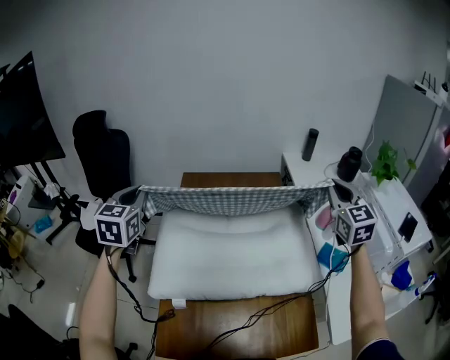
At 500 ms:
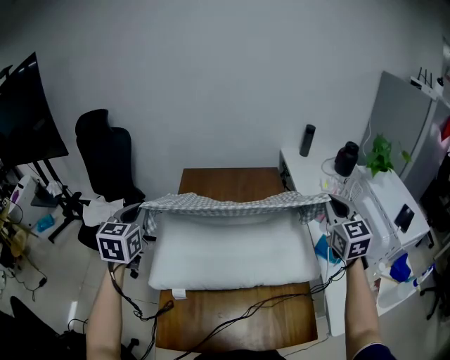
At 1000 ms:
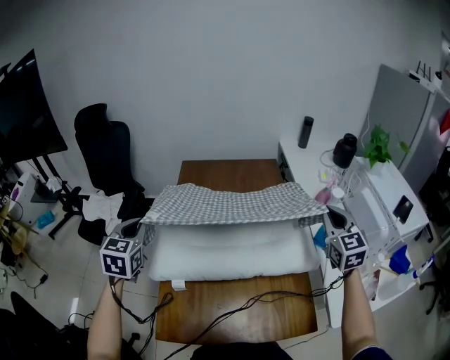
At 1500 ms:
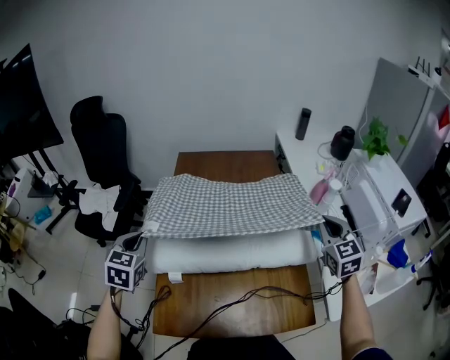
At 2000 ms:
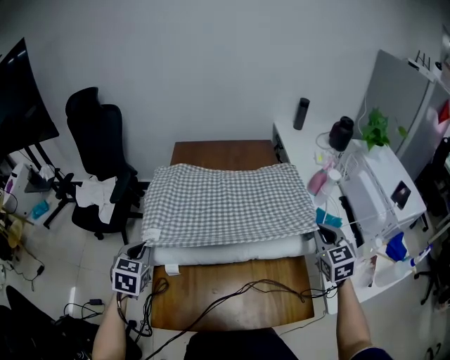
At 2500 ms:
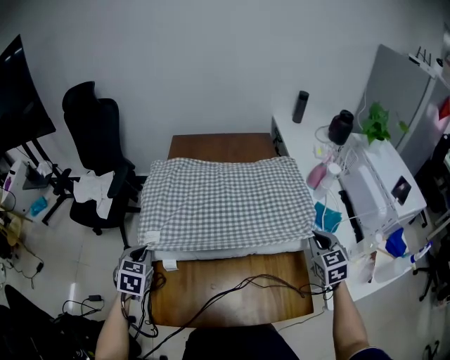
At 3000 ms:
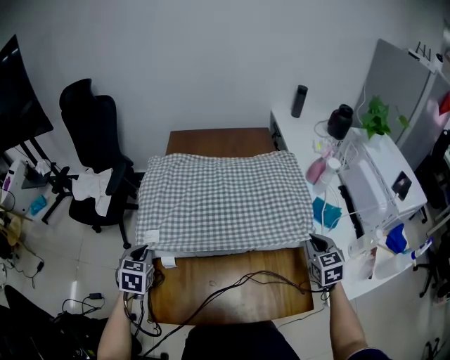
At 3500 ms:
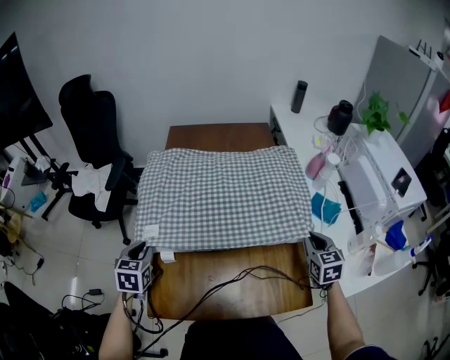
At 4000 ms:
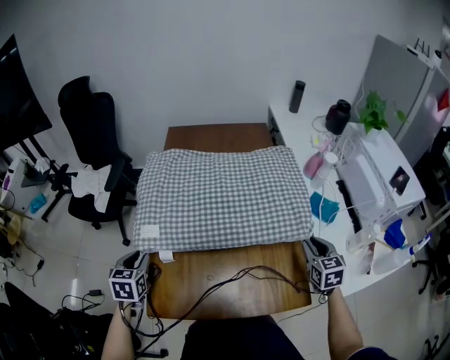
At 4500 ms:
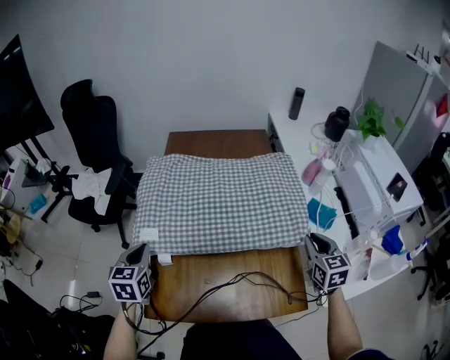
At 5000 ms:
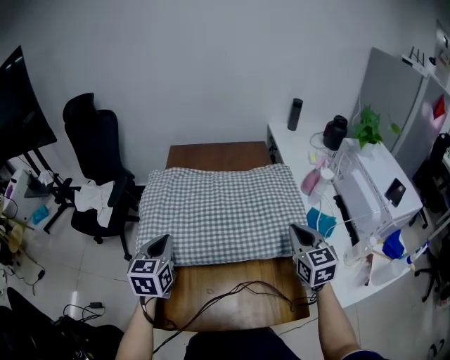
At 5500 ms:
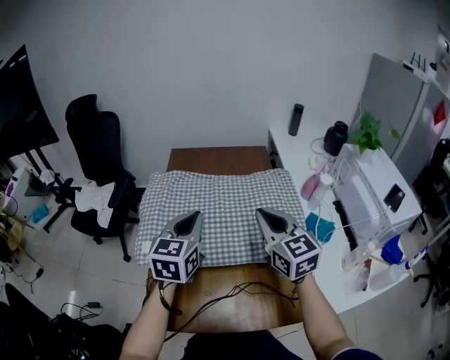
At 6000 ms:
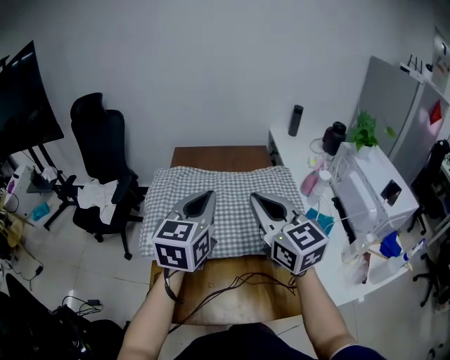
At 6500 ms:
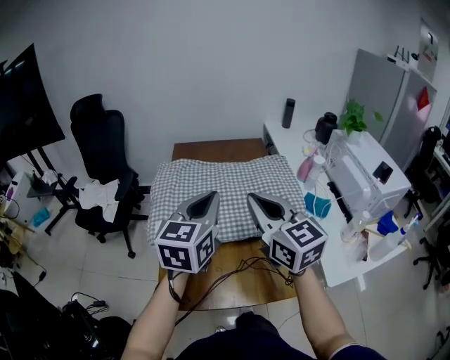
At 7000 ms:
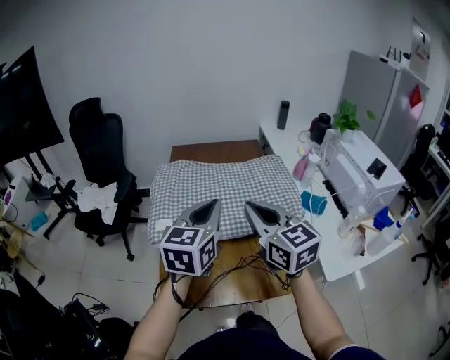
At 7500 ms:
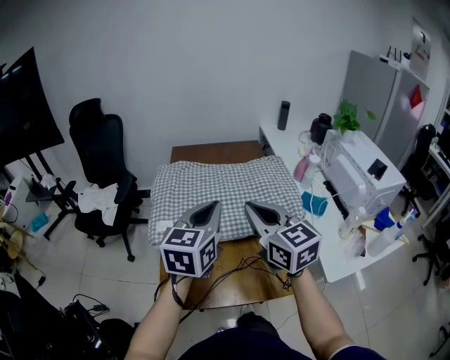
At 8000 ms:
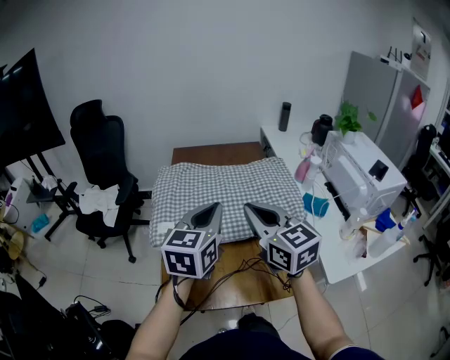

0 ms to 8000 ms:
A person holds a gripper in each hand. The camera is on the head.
0 ms to 2000 ms: The grippers both shift downward and backward by about 30 cm. The left gripper turns by roughly 20 degrees.
2000 ms to 4000 ms: The two grippers go some 10 cm downward and backward. The right gripper opens up, while the left gripper opens up.
4000 ms to 6000 ms: The left gripper is displaced upward and to the right by about 35 cm, points its fingers roughly 30 degrees further upward, and closes, while the right gripper travels upward and to the left by roughly 35 cm, tilts its fingers some 30 degrees upward, and closes.
6000 ms to 8000 ms: Both grippers move backward, roughly 10 cm.

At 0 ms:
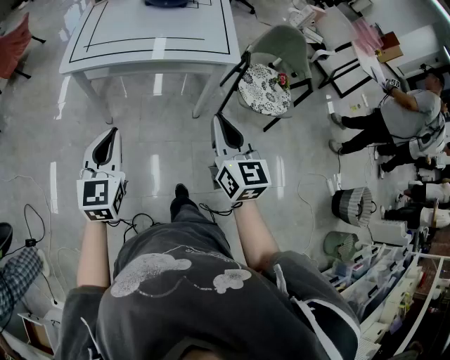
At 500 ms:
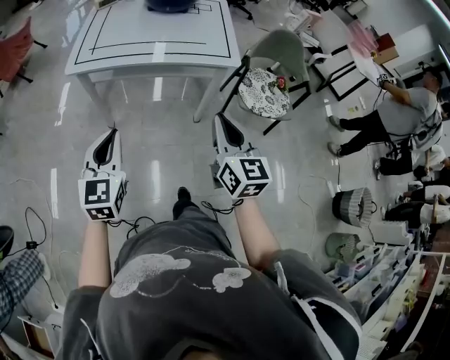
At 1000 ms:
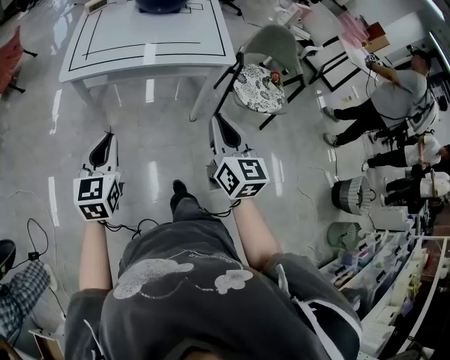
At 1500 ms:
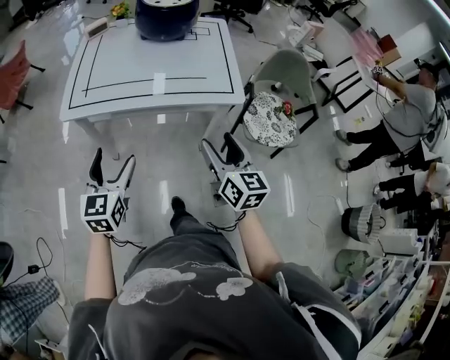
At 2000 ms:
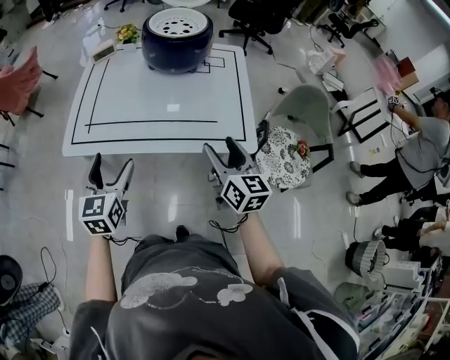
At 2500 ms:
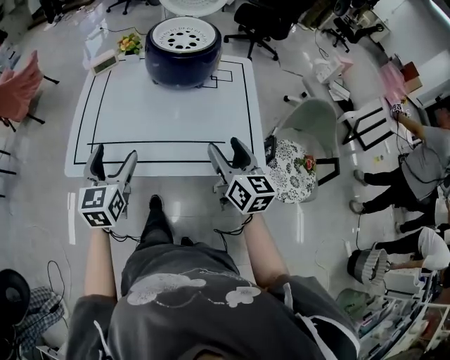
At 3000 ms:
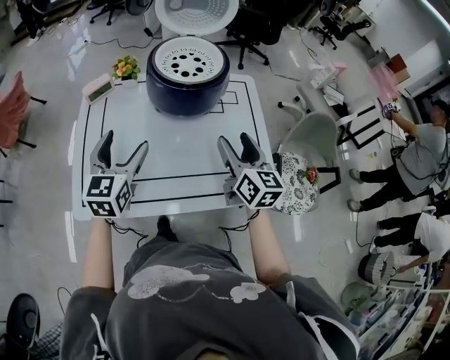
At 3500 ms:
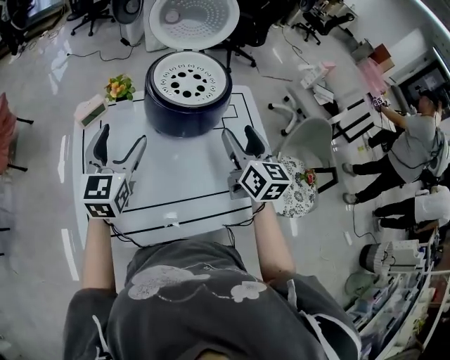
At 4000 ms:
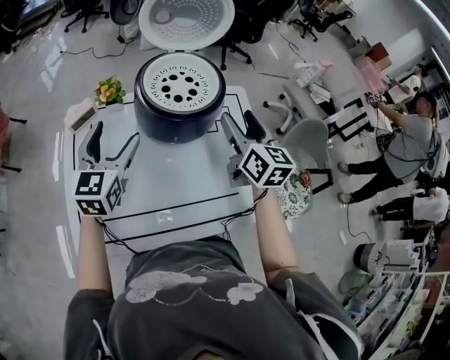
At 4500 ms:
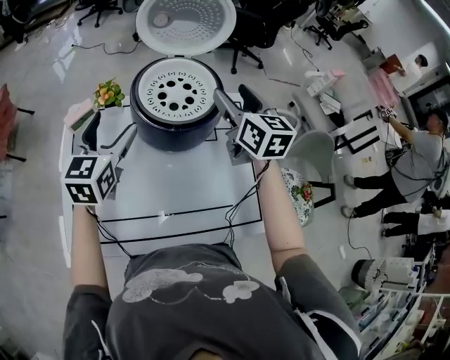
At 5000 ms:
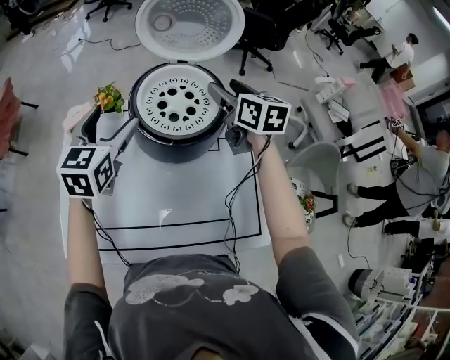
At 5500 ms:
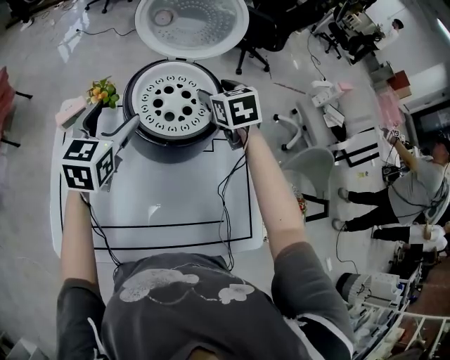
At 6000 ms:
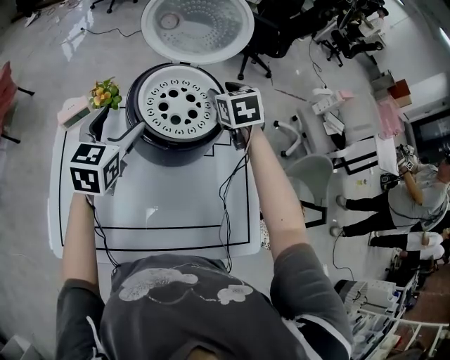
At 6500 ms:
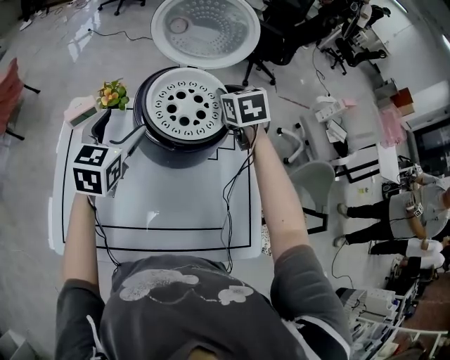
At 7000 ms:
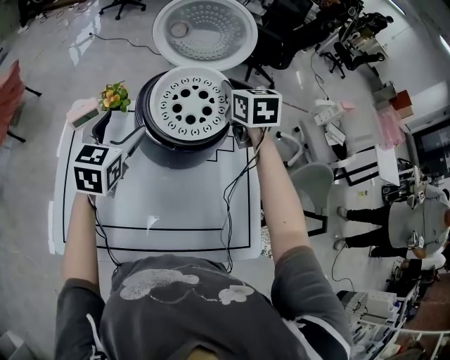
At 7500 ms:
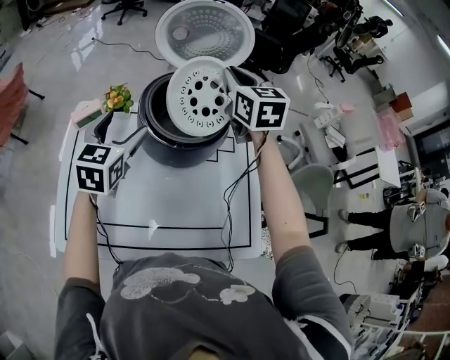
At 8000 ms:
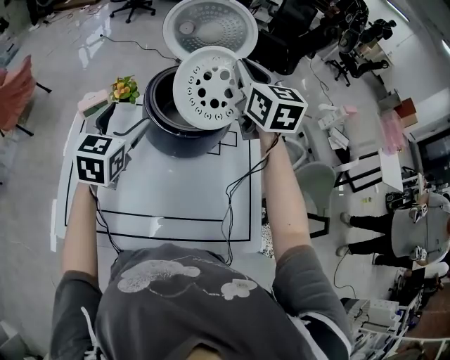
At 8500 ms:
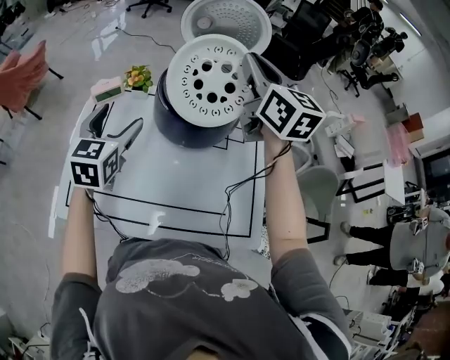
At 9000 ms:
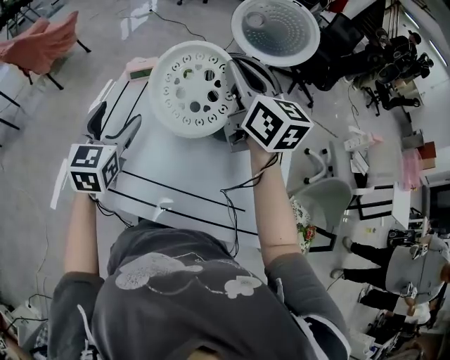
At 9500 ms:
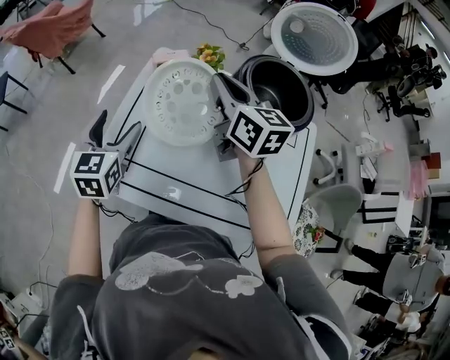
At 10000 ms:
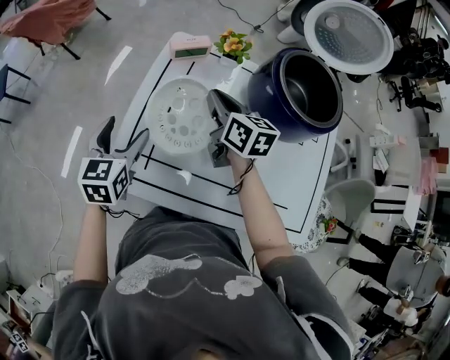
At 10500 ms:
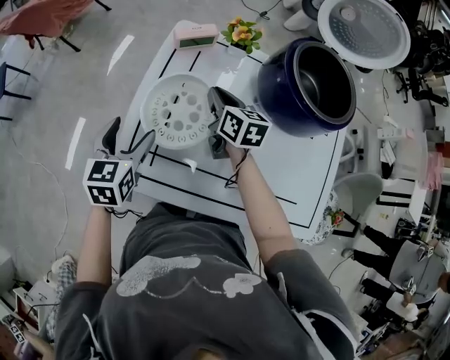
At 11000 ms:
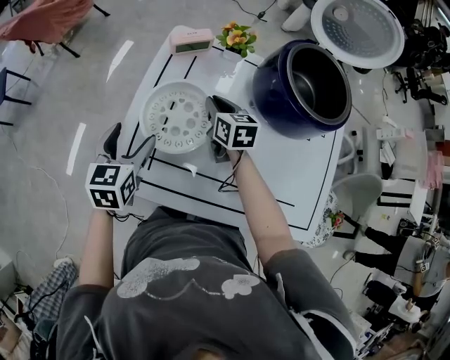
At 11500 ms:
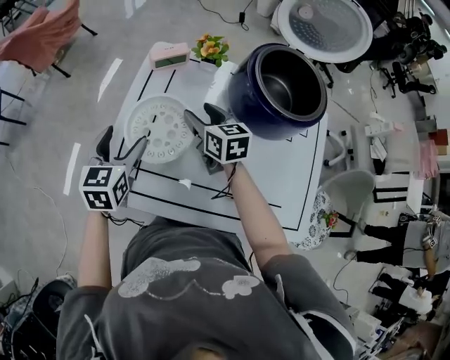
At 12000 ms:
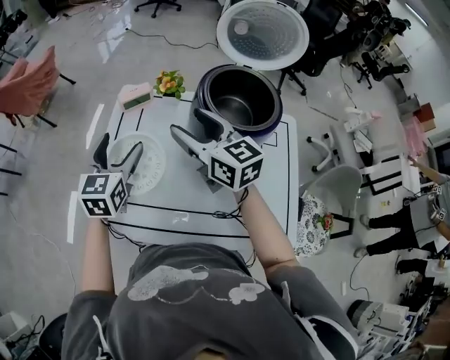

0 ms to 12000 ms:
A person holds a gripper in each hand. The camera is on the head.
0 ms to 2000 ms: Both grippers move forward, roughly 30 cm. The right gripper opens, while the left gripper opens up.
2000 ms to 4000 ms: Both grippers travel together forward, roughly 35 cm.
4000 ms to 6000 ms: The left gripper shifts approximately 10 cm forward, while the right gripper heads forward, covering approximately 20 cm, and points its fingers about 30 degrees further downward.
6000 ms to 8000 ms: The right gripper shifts approximately 20 cm upward, tilts its fingers approximately 30 degrees upward, and closes up. The left gripper is displaced backward by about 5 cm.
8000 ms to 10000 ms: The grippers both shift to the left and downward by some 35 cm. The left gripper changes its angle by approximately 20 degrees; the right gripper changes its angle by approximately 40 degrees.
10000 ms to 12000 ms: The left gripper moves to the right and upward, roughly 15 cm; the right gripper heads upward, to the right and backward, covering roughly 15 cm, turns by roughly 20 degrees, and opens.

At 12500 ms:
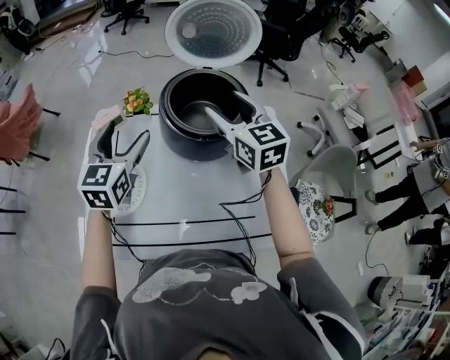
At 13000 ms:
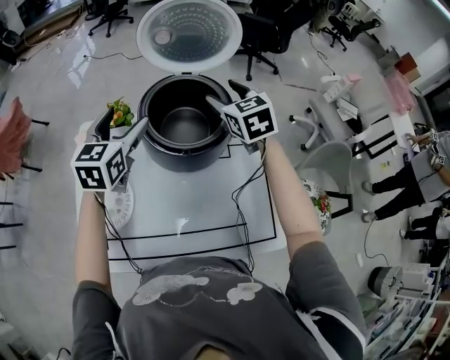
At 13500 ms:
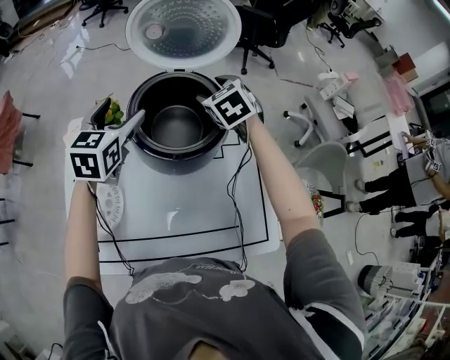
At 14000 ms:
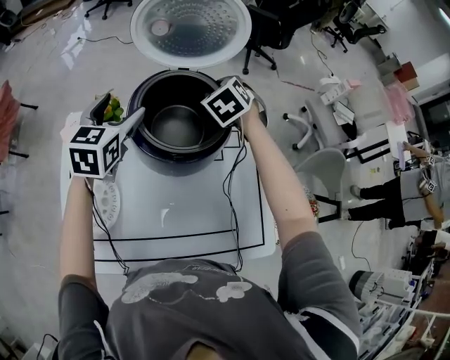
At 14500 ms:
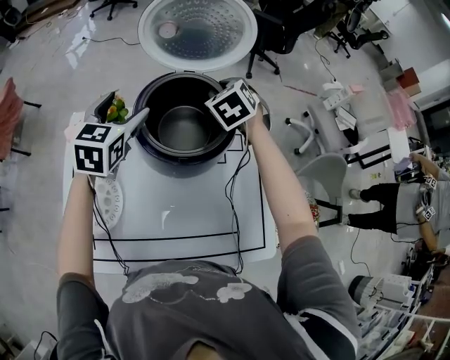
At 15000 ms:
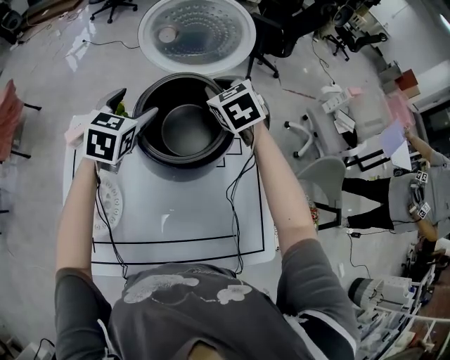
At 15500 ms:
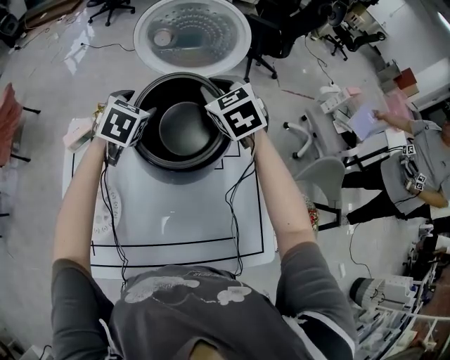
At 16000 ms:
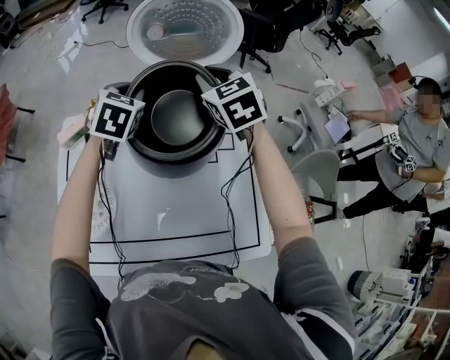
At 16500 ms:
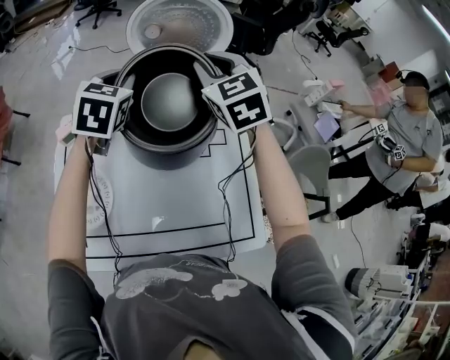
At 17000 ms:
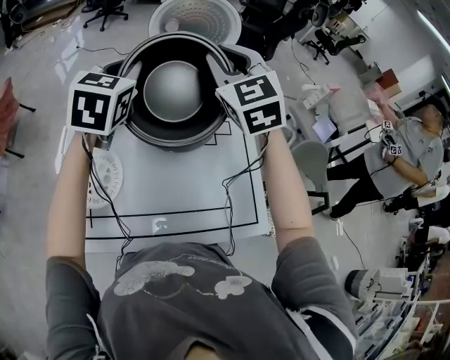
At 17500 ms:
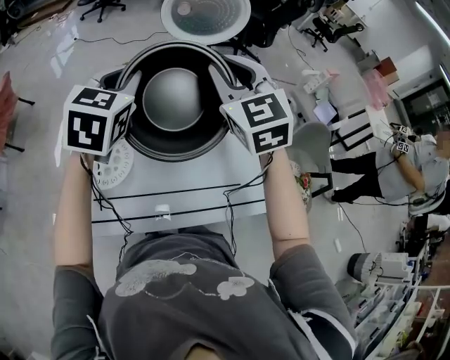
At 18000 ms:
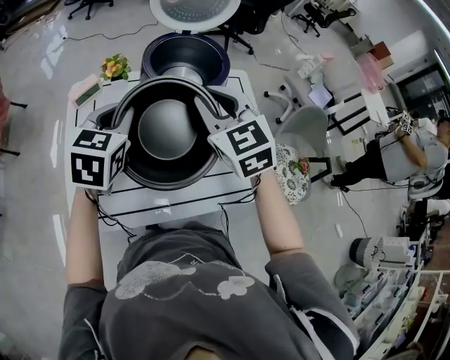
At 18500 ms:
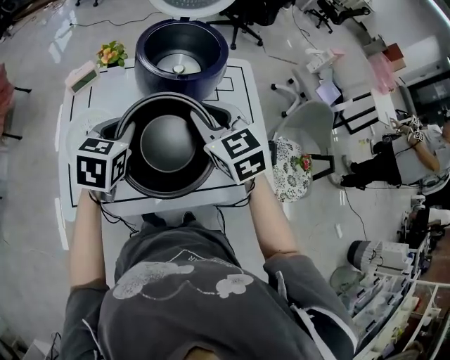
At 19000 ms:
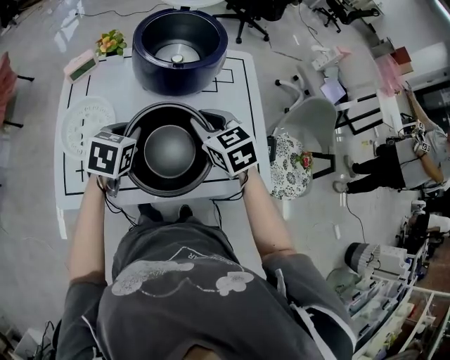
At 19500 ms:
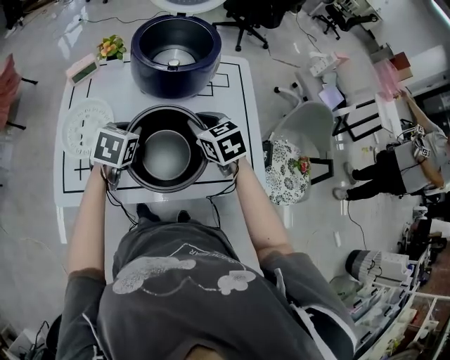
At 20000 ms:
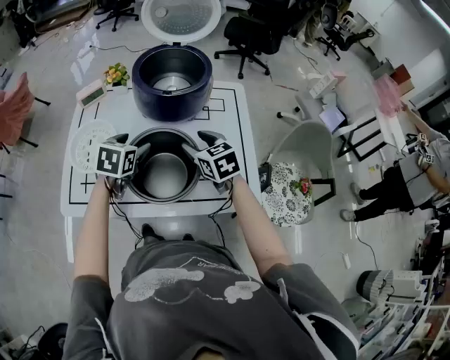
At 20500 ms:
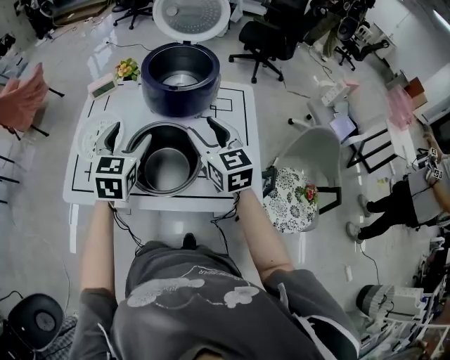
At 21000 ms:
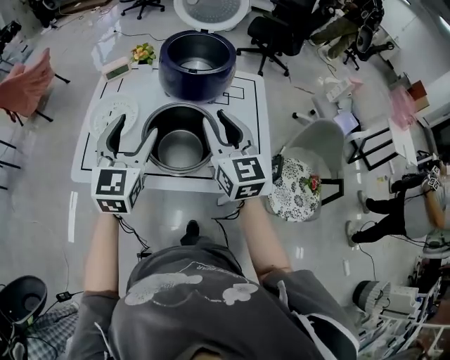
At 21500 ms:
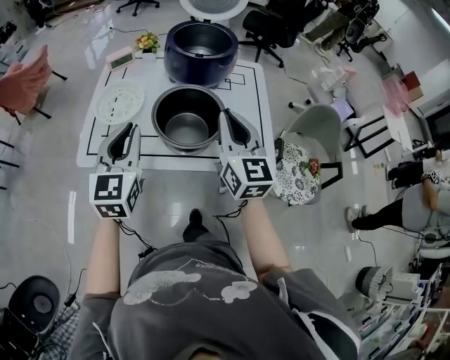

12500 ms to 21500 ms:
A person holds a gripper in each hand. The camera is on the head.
12500 ms to 14500 ms: The left gripper travels forward and to the right by roughly 15 cm; the right gripper travels forward and downward by some 20 cm, points its fingers about 30 degrees further downward, and closes.
14500 ms to 17000 ms: The left gripper is displaced upward and backward by roughly 15 cm, and closes its fingers. Meanwhile the right gripper moves upward and backward, about 25 cm, and angles its fingers upward, by some 30 degrees.
17000 ms to 19500 ms: The grippers both shift downward and backward by some 35 cm. The right gripper turns by about 40 degrees, while the left gripper rotates some 30 degrees.
19500 ms to 21500 ms: The left gripper travels backward and upward by some 25 cm, angles its fingers upward, by approximately 40 degrees, and opens, then closes once more; the right gripper heads upward and backward, covering approximately 25 cm, points its fingers approximately 40 degrees further upward, and opens, then closes again.
